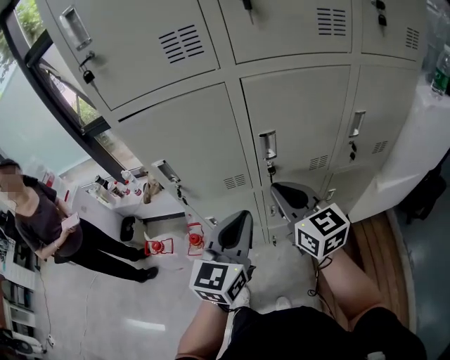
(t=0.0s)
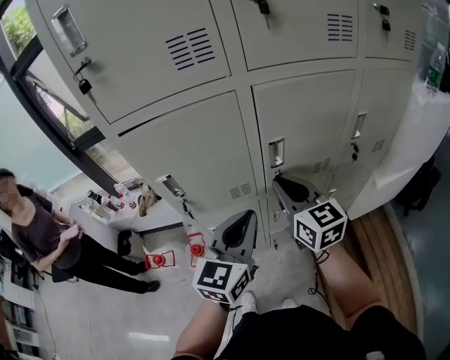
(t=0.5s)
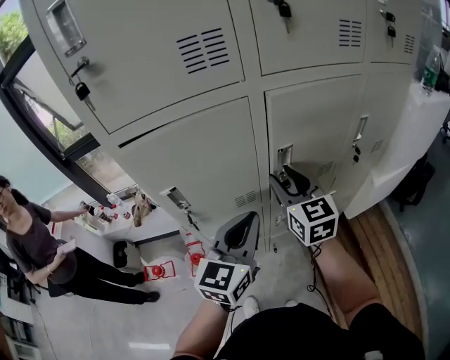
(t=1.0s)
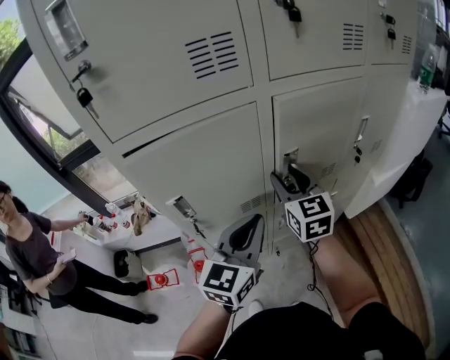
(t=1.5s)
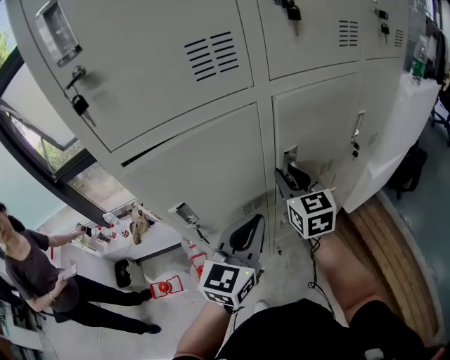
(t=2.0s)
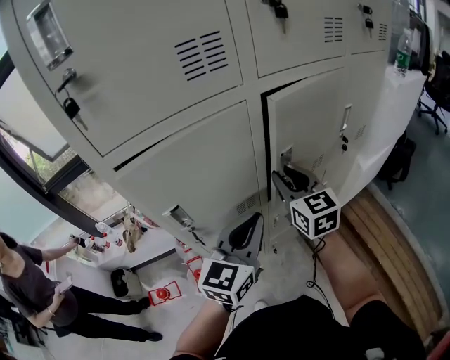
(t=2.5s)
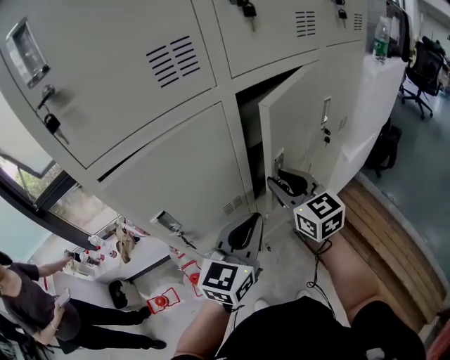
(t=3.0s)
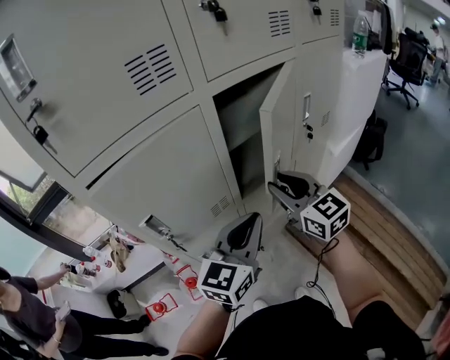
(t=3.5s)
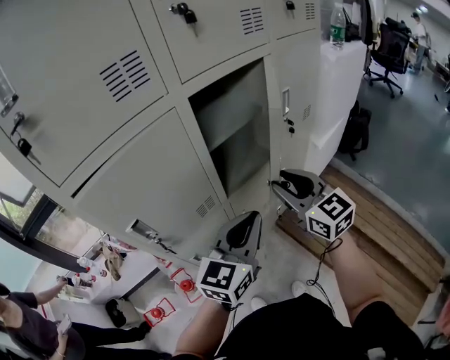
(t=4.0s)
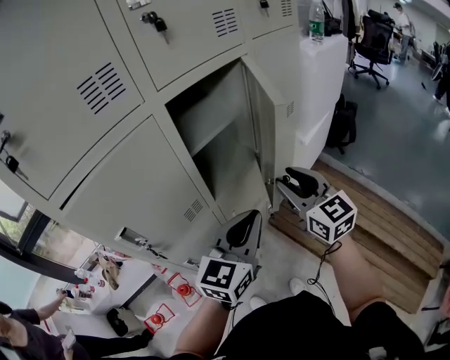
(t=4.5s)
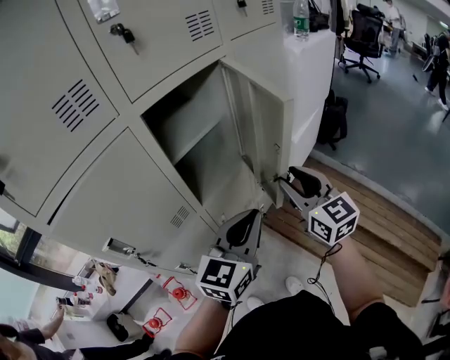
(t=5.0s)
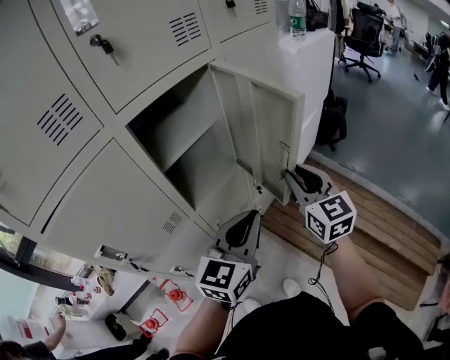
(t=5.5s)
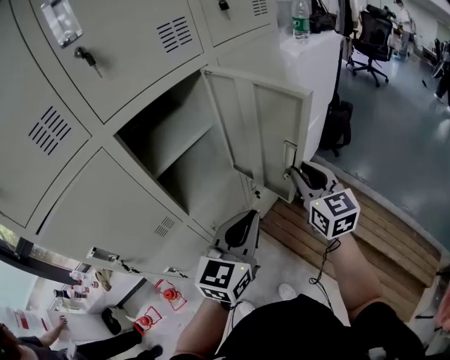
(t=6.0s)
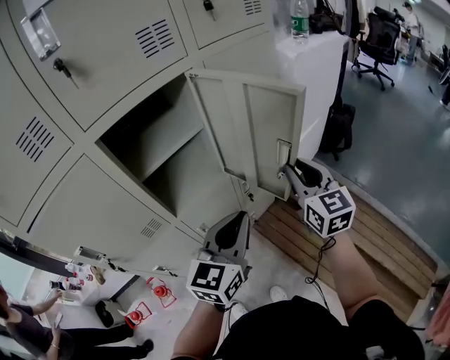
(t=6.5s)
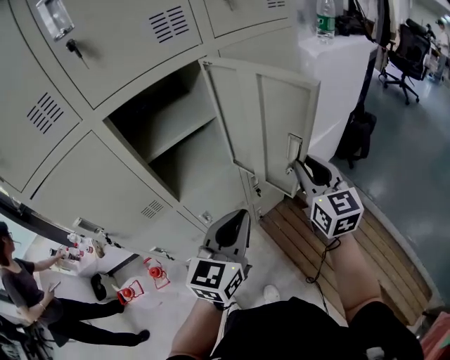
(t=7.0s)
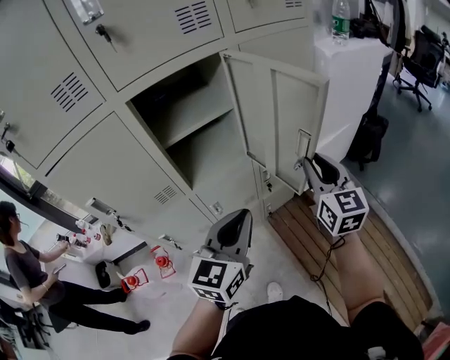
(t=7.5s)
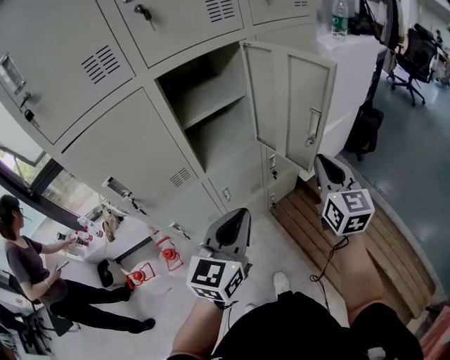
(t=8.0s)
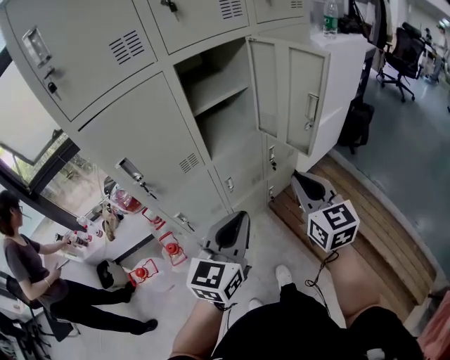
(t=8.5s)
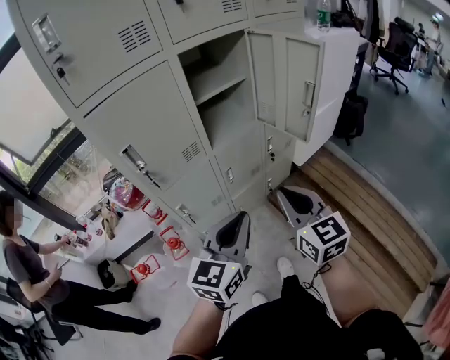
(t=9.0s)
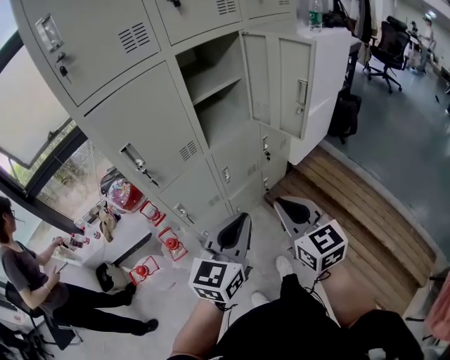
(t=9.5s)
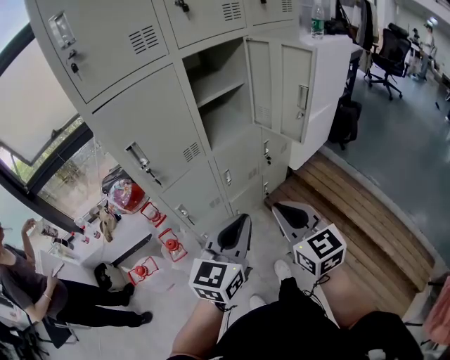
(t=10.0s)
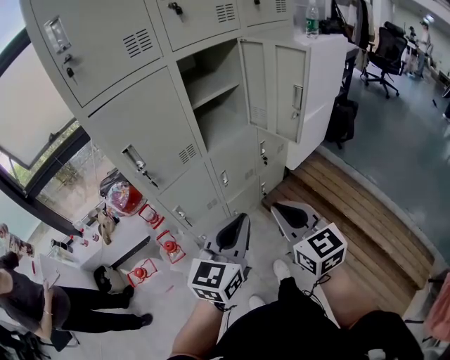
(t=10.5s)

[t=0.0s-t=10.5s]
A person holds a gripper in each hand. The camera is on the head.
t=0.0s to t=2.0s: The left gripper ends up roughly 10 cm from where it was, and swivels about 20 degrees; the right gripper shifts by approximately 10 cm, changes its angle by about 30 degrees, and opens.
t=2.0s to t=4.0s: The left gripper shifts roughly 10 cm to the right, and swivels some 20 degrees, while the right gripper shifts approximately 15 cm to the right and backward.
t=4.0s to t=6.5s: Both grippers move to the right and forward, some 20 cm. The right gripper rotates roughly 20 degrees.
t=6.5s to t=8.5s: Both grippers move backward and to the left, roughly 25 cm.
t=8.5s to t=10.5s: The left gripper shifts roughly 5 cm backward. Meanwhile the right gripper is displaced backward and to the left by roughly 15 cm.

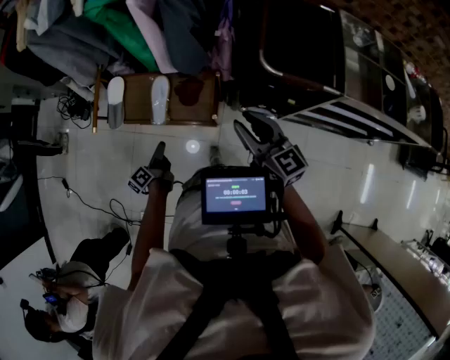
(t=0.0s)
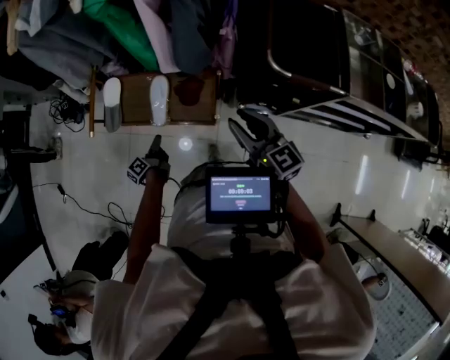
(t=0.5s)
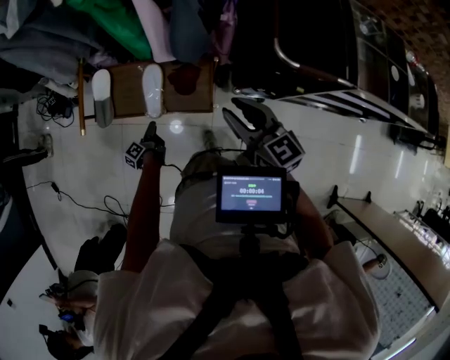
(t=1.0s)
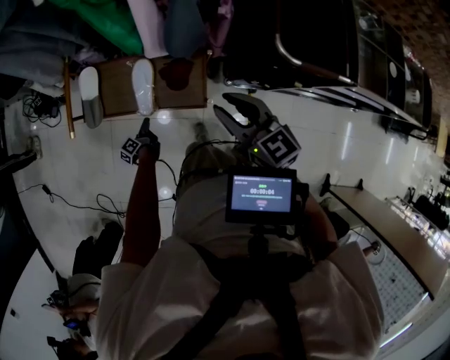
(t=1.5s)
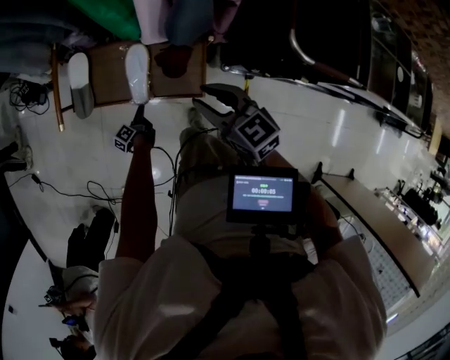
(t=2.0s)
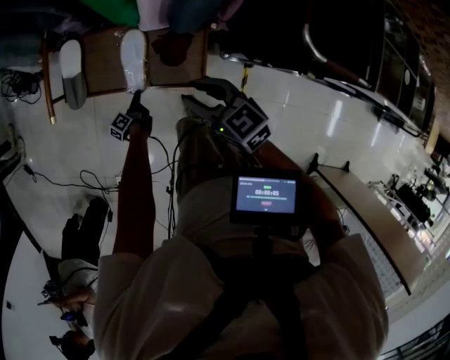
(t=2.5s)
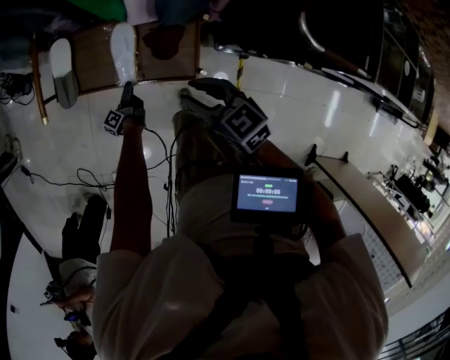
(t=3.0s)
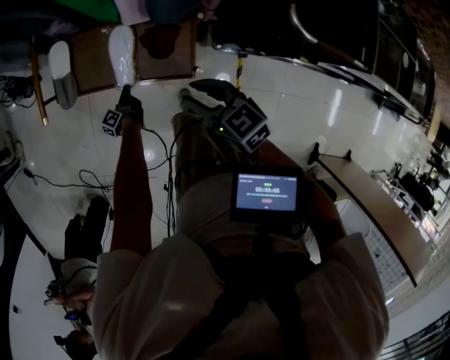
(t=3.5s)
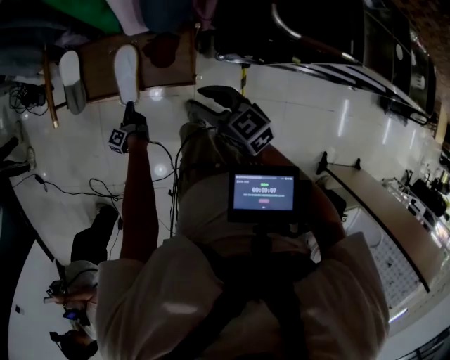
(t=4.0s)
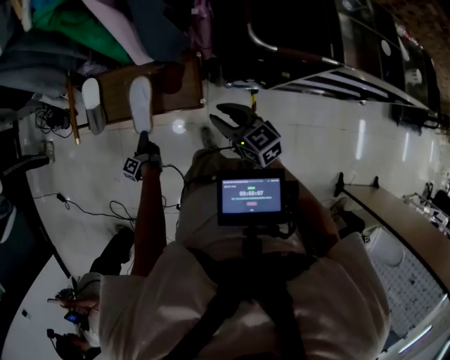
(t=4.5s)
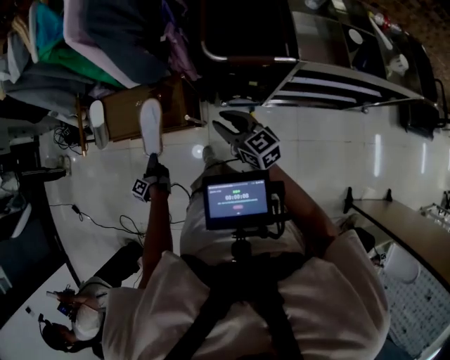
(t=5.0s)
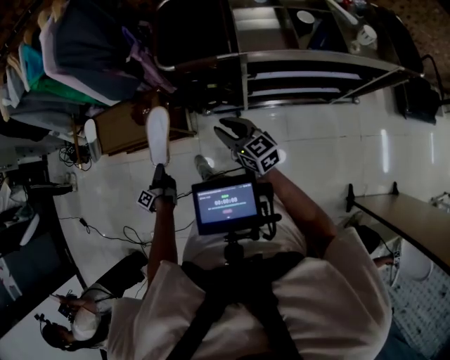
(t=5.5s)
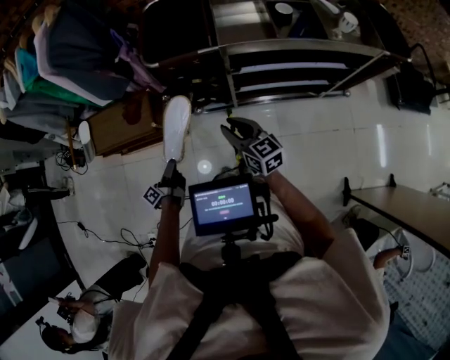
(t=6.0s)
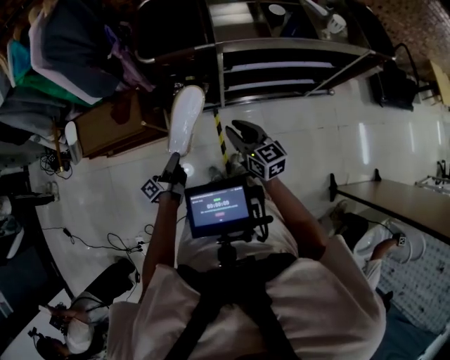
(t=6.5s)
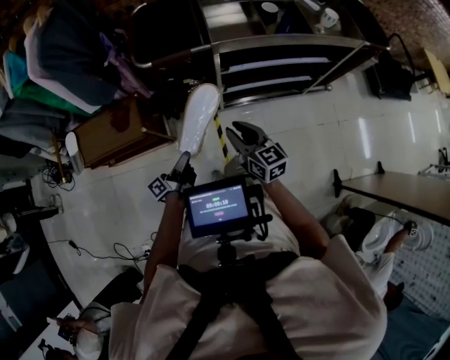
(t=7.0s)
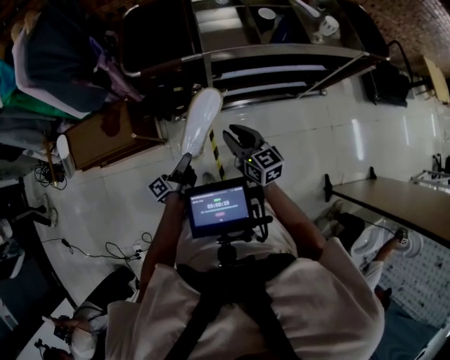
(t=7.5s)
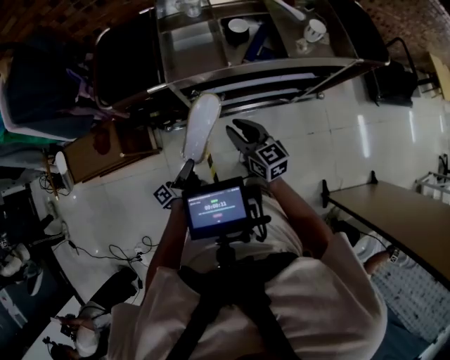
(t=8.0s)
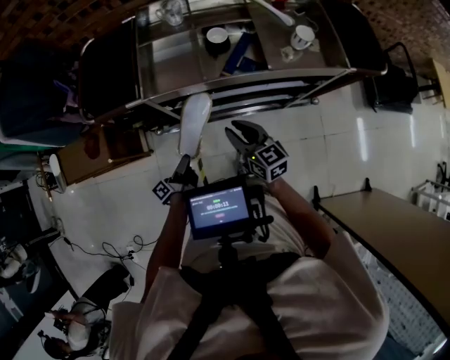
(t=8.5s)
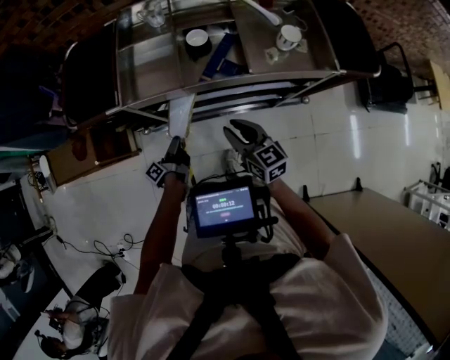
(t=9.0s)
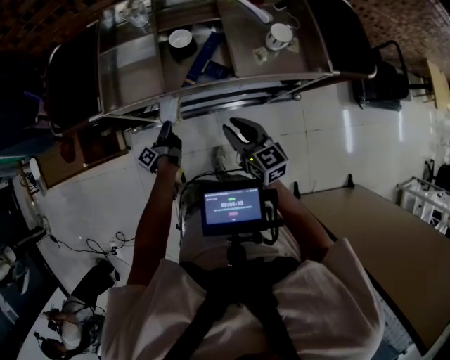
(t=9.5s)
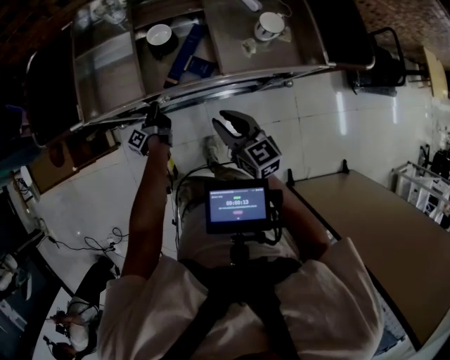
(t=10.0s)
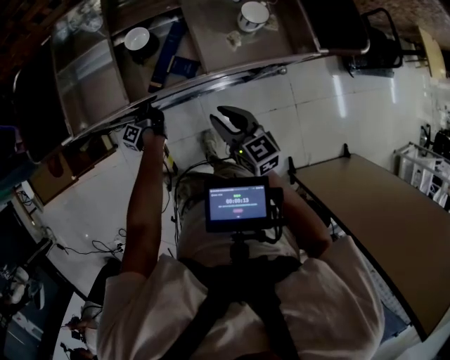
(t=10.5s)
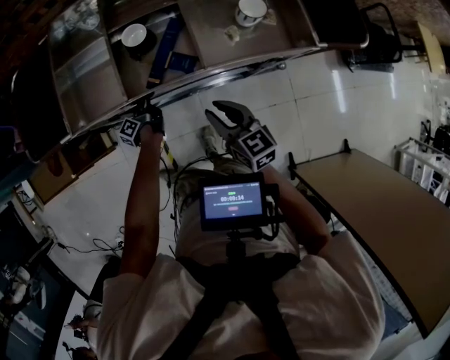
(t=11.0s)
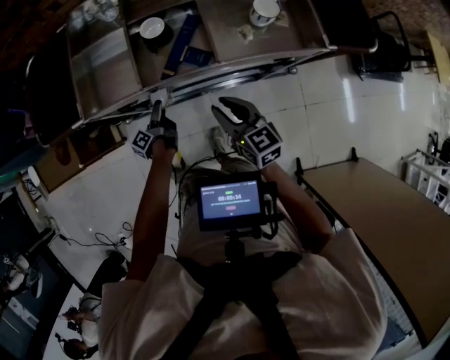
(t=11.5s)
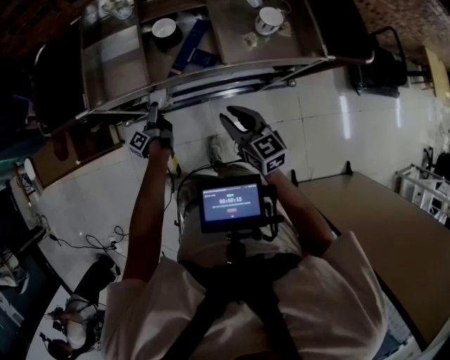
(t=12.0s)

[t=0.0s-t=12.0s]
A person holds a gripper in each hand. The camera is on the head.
t=0.0s to t=2.0s: The right gripper ends up some 20 cm from where it was, and rotates some 20 degrees.
t=2.0s to t=4.0s: The right gripper ends up some 10 cm from where it was.
t=4.0s to t=6.0s: The right gripper shifts by about 50 cm, and turns by roughly 30 degrees.
t=6.0s to t=8.0s: The right gripper moves about 20 cm.
t=8.0s to t=10.0s: The right gripper changes place by some 20 cm.

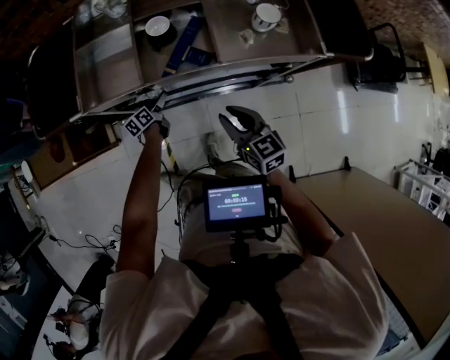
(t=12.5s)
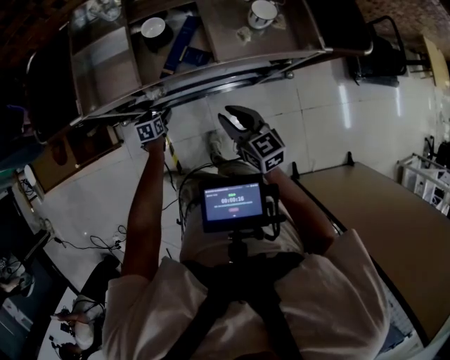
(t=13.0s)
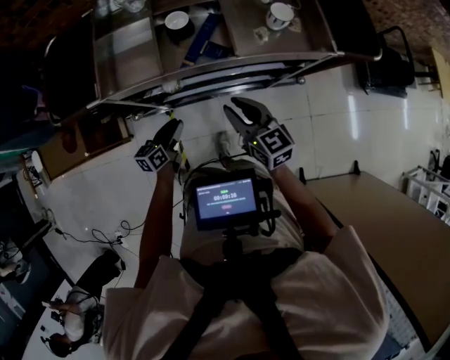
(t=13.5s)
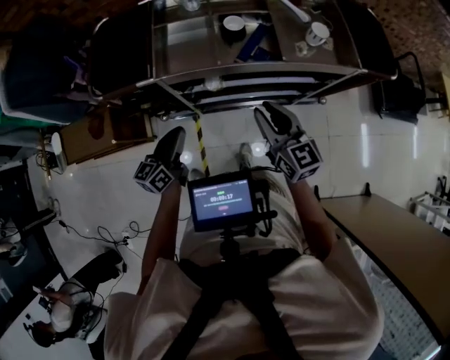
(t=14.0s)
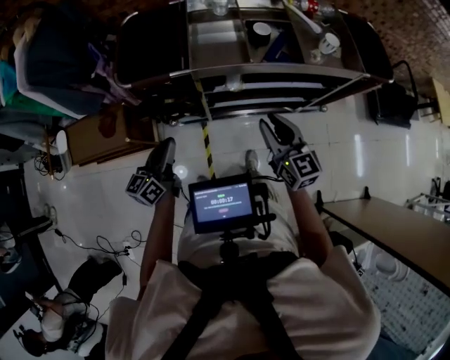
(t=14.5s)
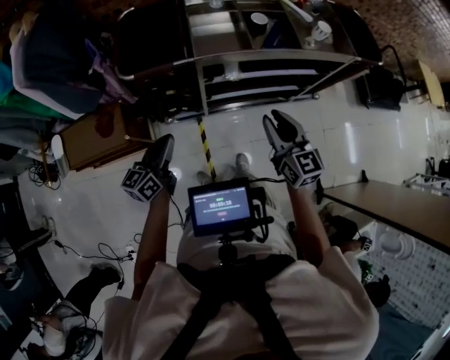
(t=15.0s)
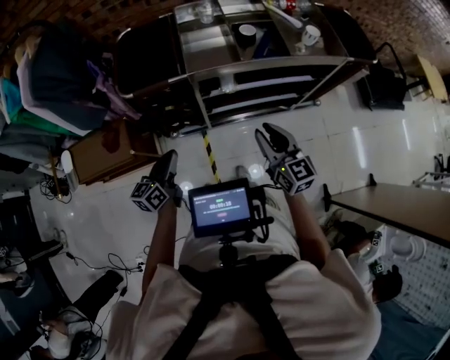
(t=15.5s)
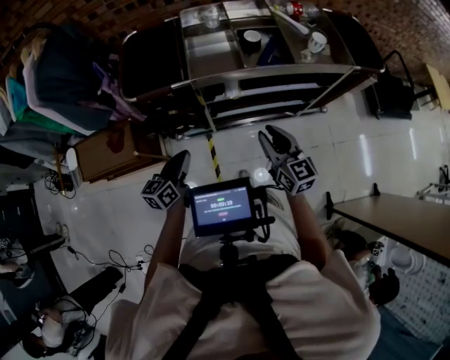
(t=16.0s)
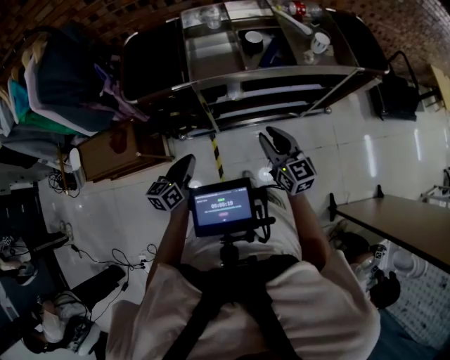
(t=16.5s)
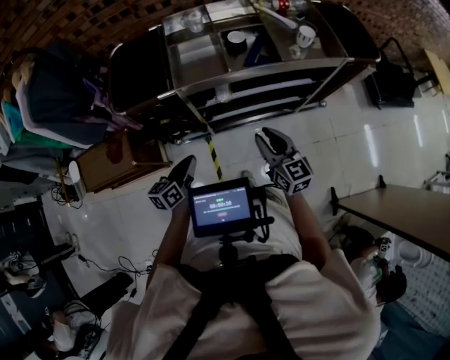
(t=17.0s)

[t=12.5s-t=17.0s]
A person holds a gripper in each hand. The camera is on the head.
t=12.5s to t=14.5s: The right gripper ends up roughly 25 cm from where it was.
t=14.5s to t=17.0s: The right gripper moves some 5 cm.
